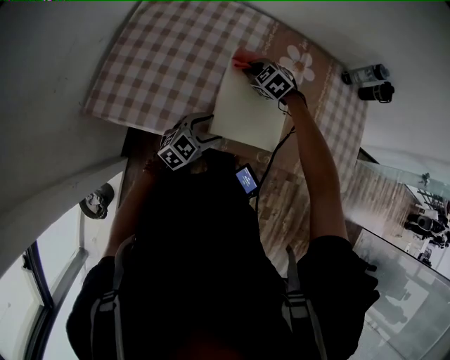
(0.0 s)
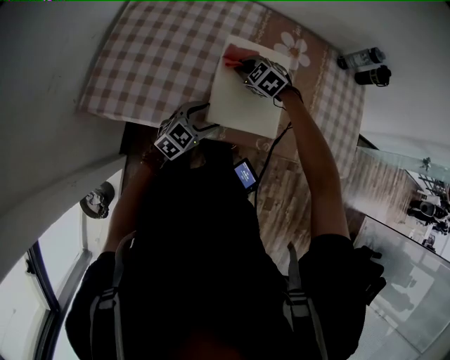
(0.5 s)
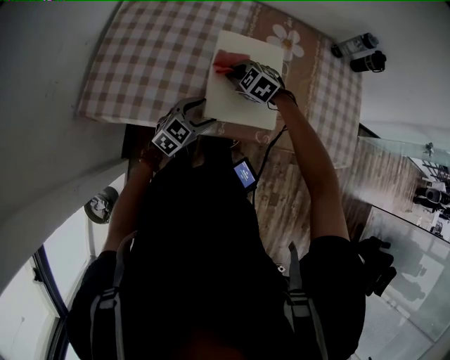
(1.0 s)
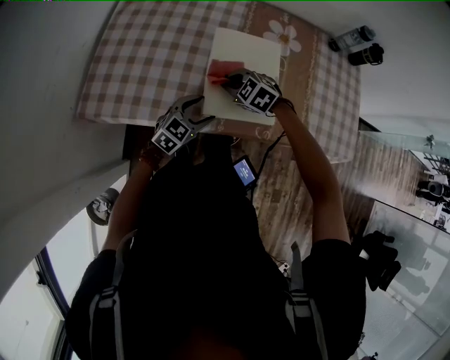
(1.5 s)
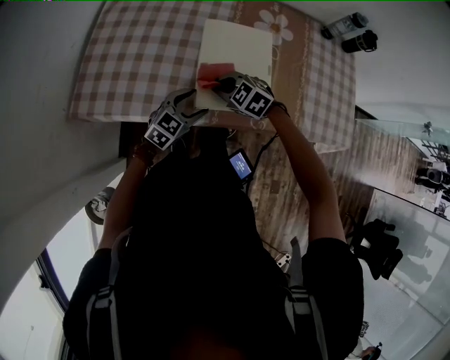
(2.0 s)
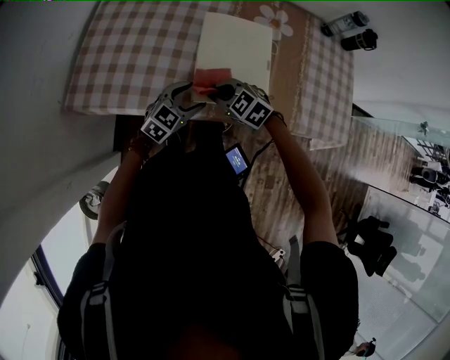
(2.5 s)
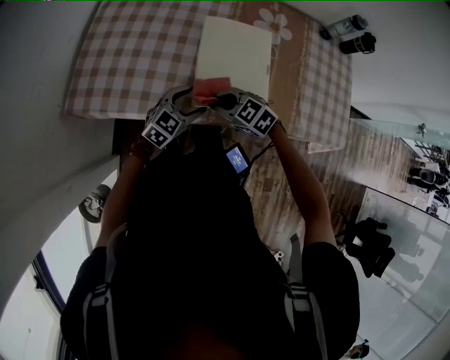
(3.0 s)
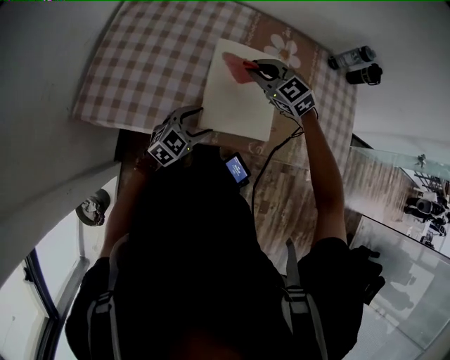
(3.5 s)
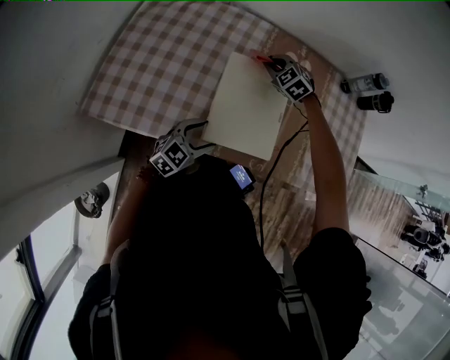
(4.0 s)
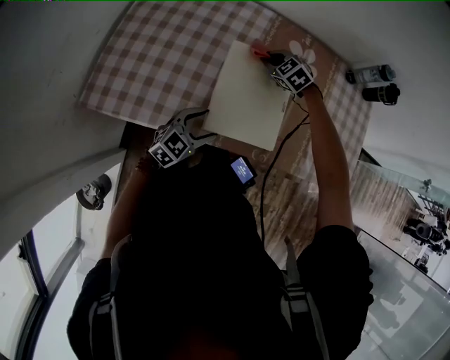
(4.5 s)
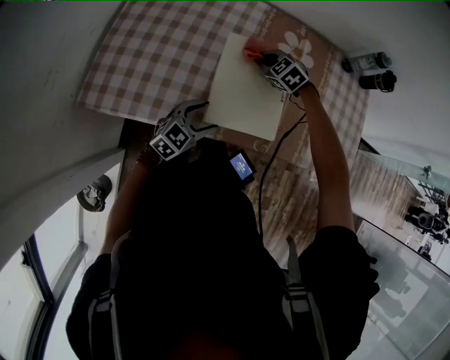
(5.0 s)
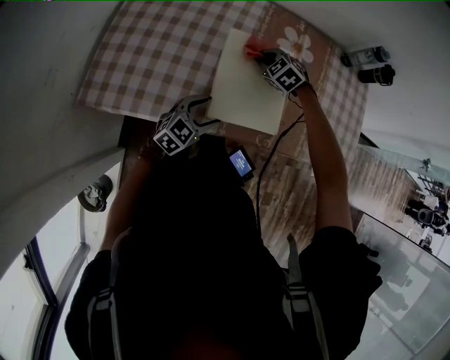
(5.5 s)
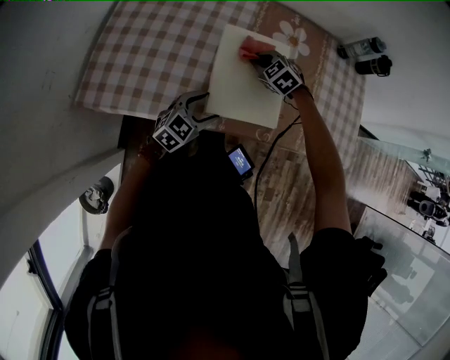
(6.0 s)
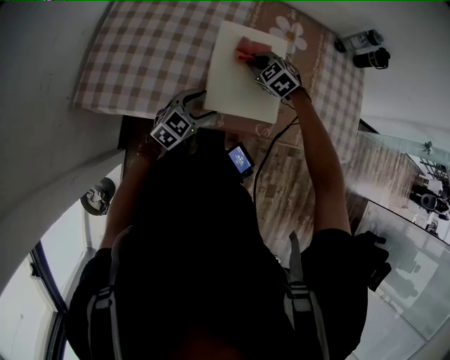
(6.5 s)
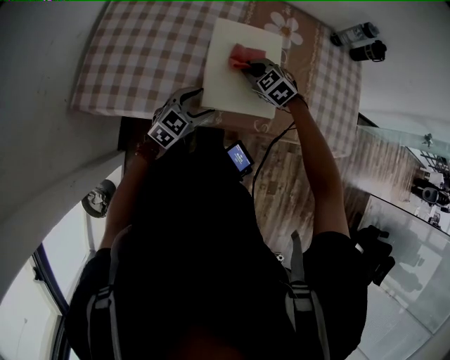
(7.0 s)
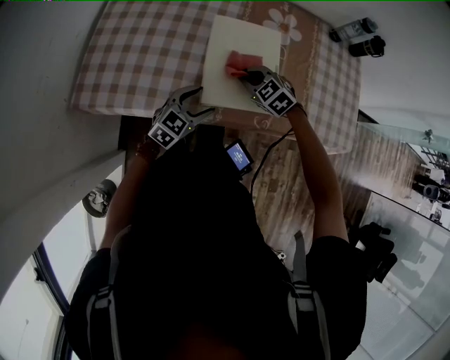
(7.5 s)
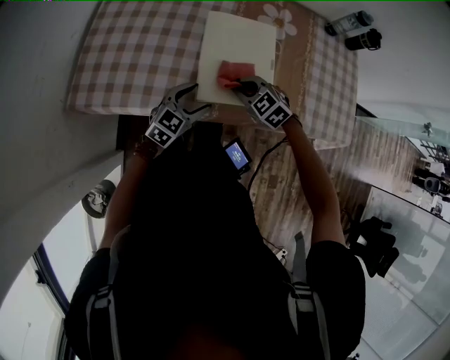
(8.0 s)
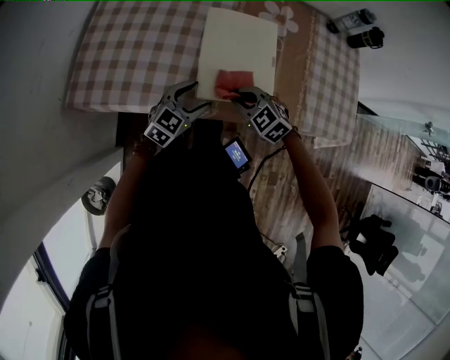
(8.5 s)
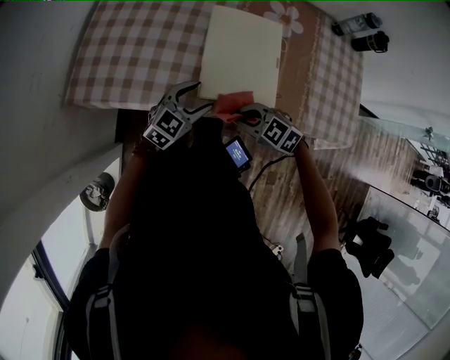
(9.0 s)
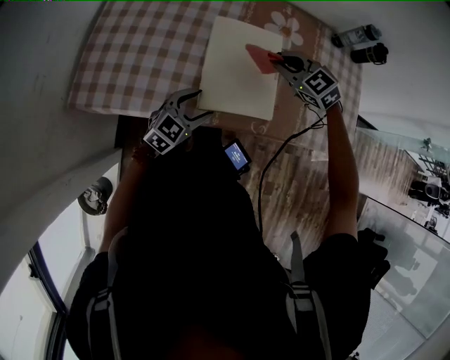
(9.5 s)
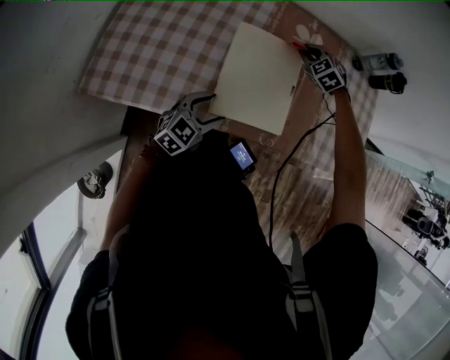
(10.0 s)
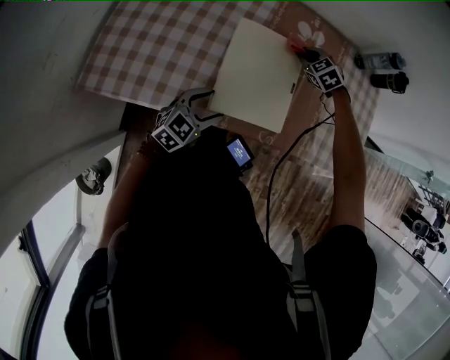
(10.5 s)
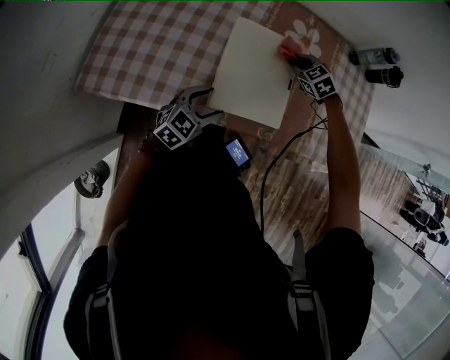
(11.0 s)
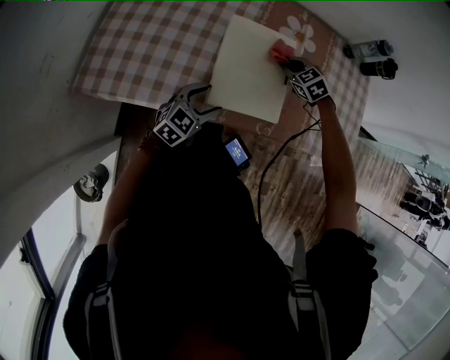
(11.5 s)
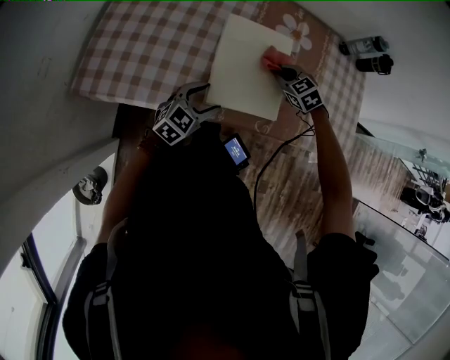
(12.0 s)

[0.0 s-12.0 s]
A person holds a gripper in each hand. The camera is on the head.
0.0 to 2.0 s: The right gripper travels backward by approximately 20 cm.
2.0 to 4.0 s: The left gripper reaches approximately 10 cm forward, then returns, while the right gripper moves forward, about 25 cm.
4.0 to 6.0 s: The right gripper is displaced backward by about 10 cm.
6.0 to 8.0 s: The right gripper shifts some 15 cm backward.
8.0 to 10.0 s: The right gripper goes upward and returns, roughly 10 cm each way.
10.0 to 12.0 s: The right gripper shifts approximately 15 cm backward.

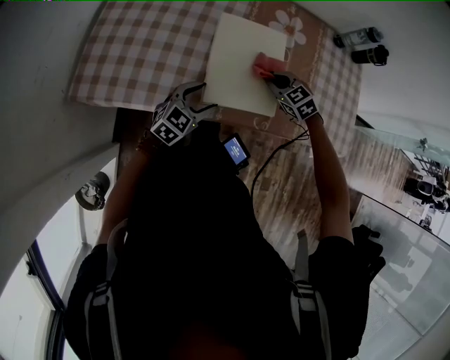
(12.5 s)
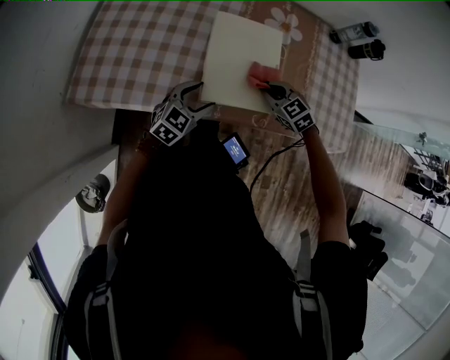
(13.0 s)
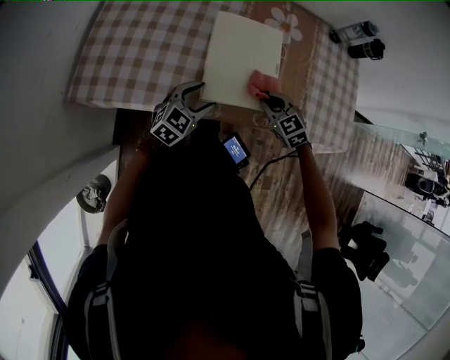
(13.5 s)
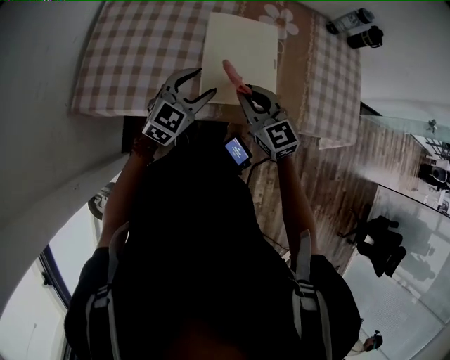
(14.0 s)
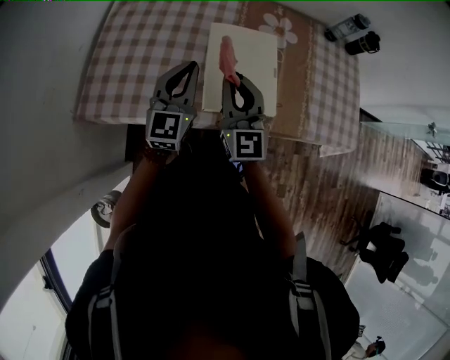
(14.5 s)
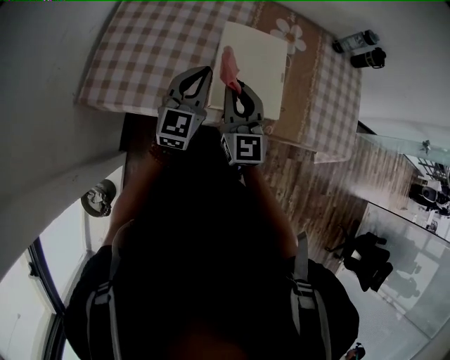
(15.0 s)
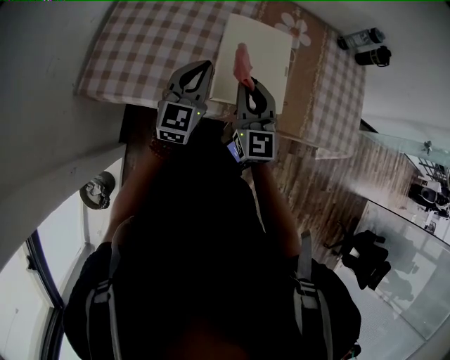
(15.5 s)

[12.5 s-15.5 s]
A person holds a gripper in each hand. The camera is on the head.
12.5 to 14.0 s: The left gripper moves upward, about 10 cm; the right gripper is displaced upward, backward and to the left by approximately 20 cm, and angles its fingers upward, by some 30 degrees.
14.0 to 15.5 s: The left gripper shifts about 10 cm to the left and upward, rotates approximately 30 degrees, and closes up. Meanwhile the right gripper changes its angle by roughly 20 degrees.

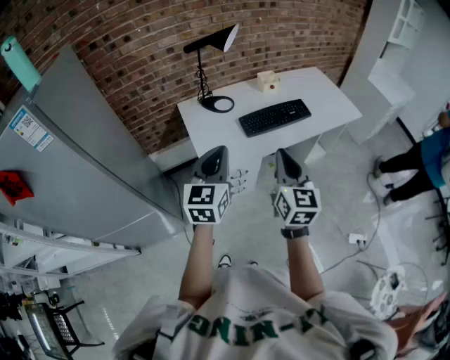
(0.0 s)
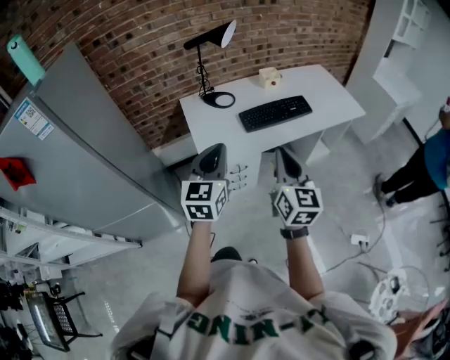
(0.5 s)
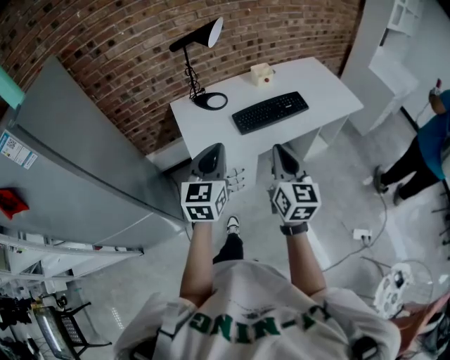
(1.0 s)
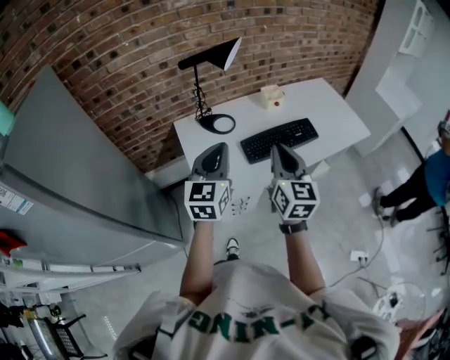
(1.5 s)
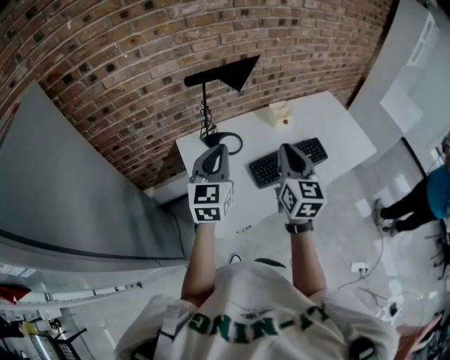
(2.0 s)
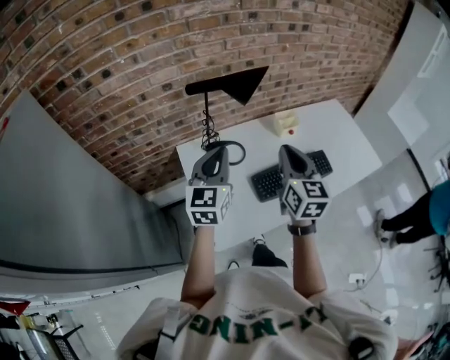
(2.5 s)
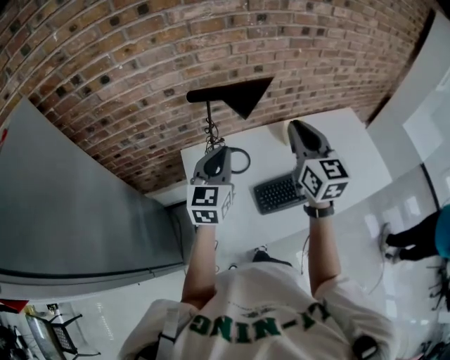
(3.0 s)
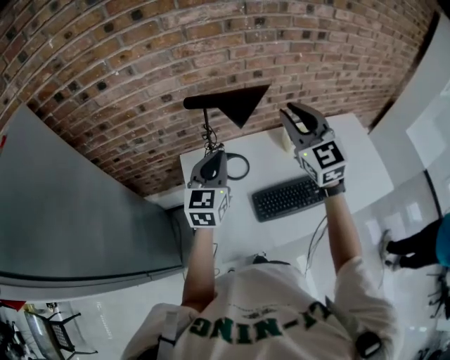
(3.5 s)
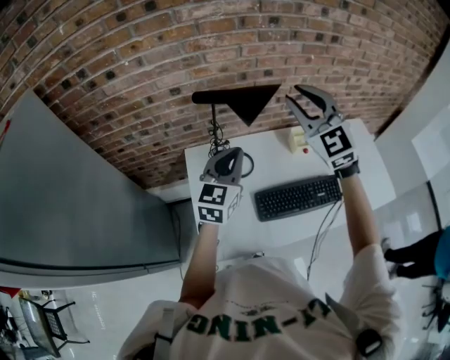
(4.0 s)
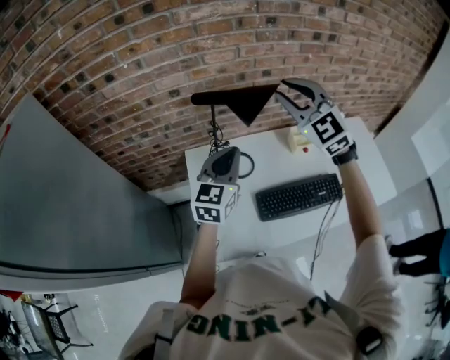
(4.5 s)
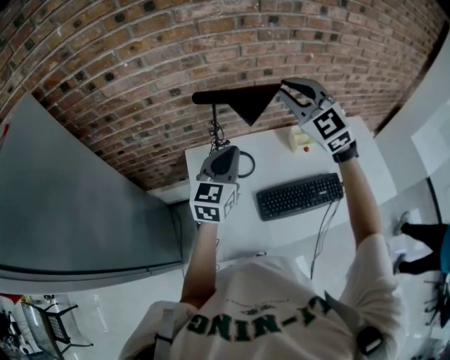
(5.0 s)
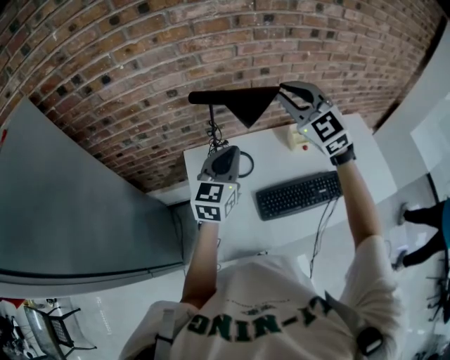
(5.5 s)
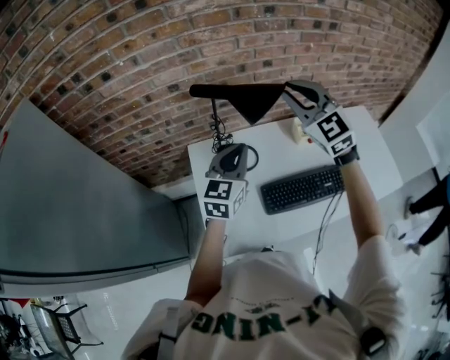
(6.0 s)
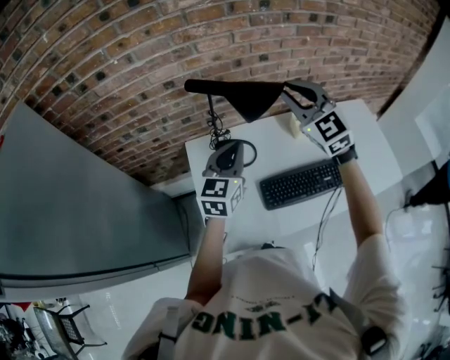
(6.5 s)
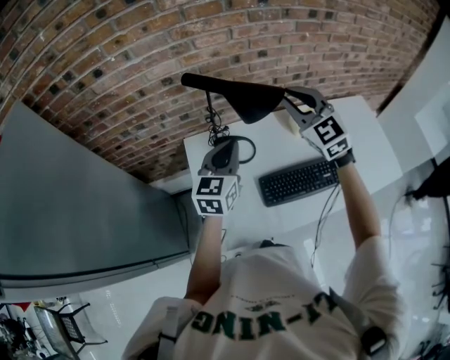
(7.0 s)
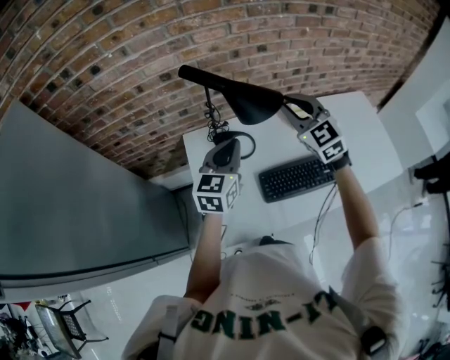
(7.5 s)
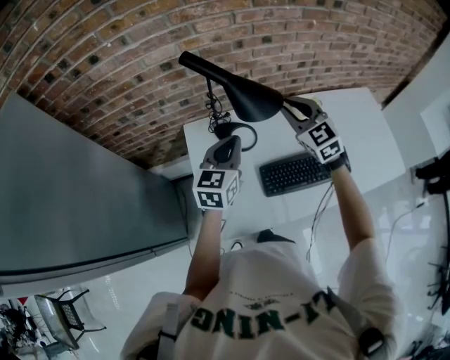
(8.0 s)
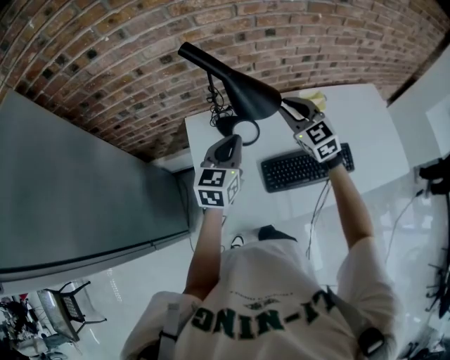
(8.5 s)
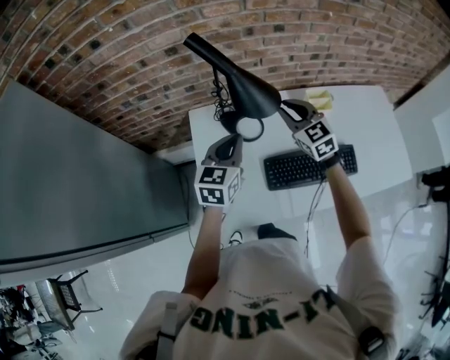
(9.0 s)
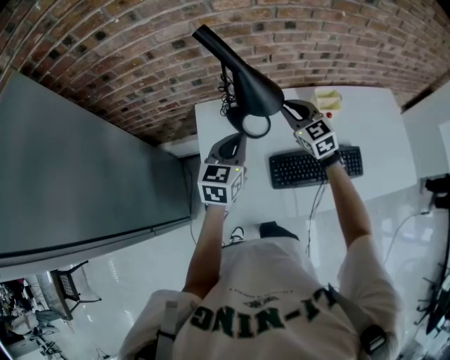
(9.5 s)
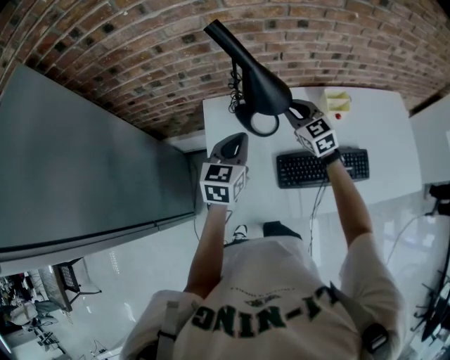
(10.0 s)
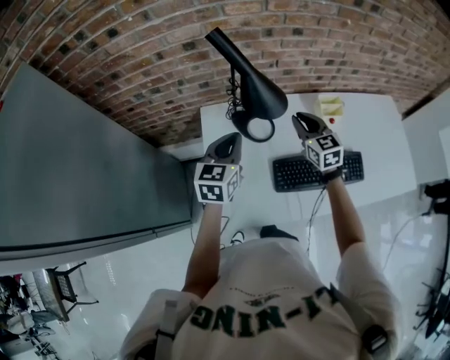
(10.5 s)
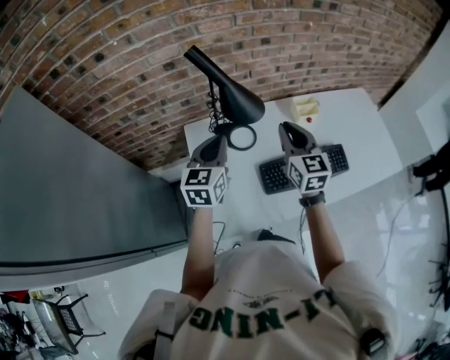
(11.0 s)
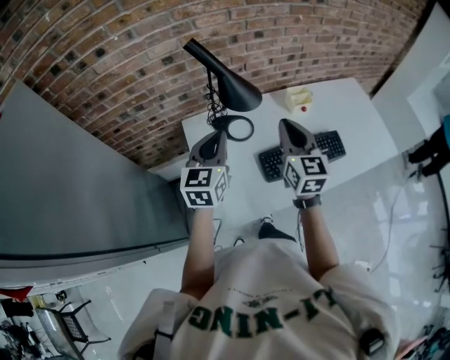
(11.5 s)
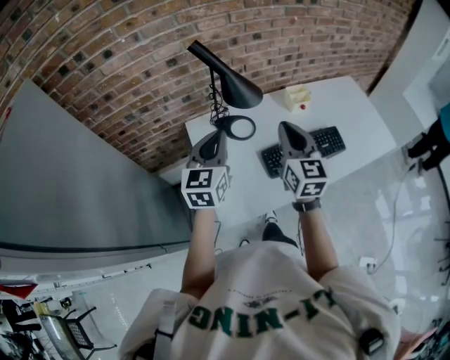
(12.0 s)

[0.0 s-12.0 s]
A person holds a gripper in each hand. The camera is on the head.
0.0 to 2.0 s: The two grippers go approximately 30 cm forward.
2.0 to 4.0 s: The left gripper heads forward and to the right, covering roughly 15 cm. Meanwhile the right gripper moves forward and upward, about 30 cm, and swivels about 60 degrees.
4.0 to 6.0 s: There are only small adjustments of the grippers.
6.0 to 8.0 s: The left gripper heads downward, covering about 5 cm. Meanwhile the right gripper moves downward, some 15 cm.
8.0 to 10.0 s: The left gripper goes approximately 5 cm downward. The right gripper heads downward, covering some 15 cm.
10.0 to 12.0 s: The left gripper travels upward and backward by roughly 15 cm. Meanwhile the right gripper goes about 25 cm backward and upward, and turns by roughly 40 degrees.
